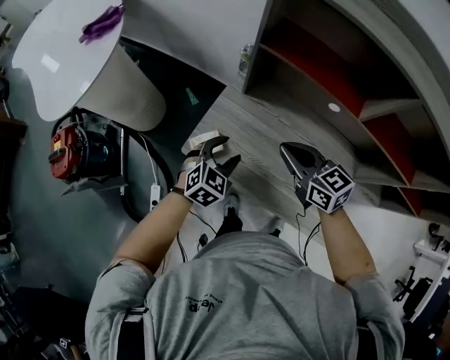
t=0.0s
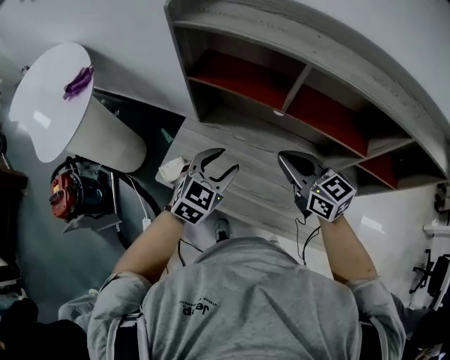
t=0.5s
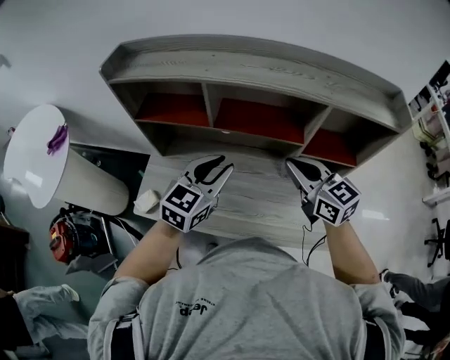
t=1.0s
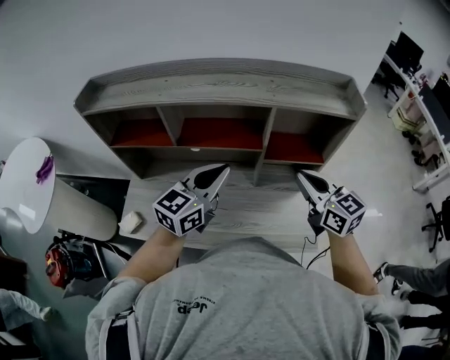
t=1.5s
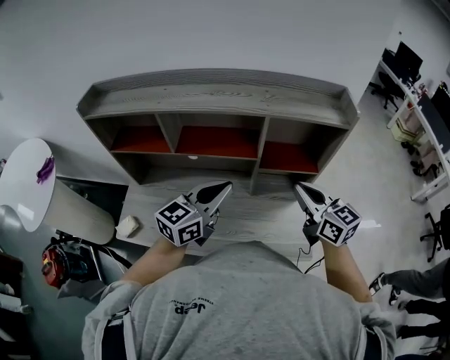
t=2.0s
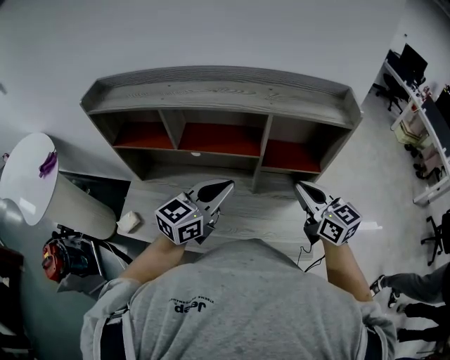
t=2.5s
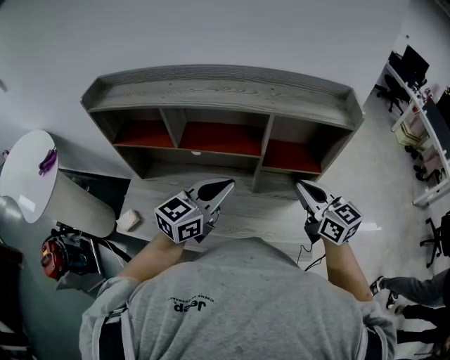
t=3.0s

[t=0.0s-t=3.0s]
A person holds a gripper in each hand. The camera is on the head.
t=0.0s to t=1.5s: The two grippers travel together, roughly 50 cm. The right gripper turns by roughly 40 degrees, while the left gripper tilts its fingers approximately 40 degrees upward, and closes up.
t=1.5s to t=3.0s: The grippers make only small movements.

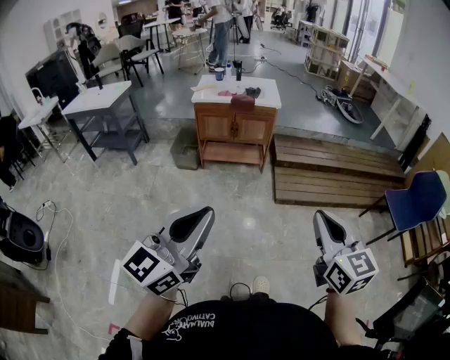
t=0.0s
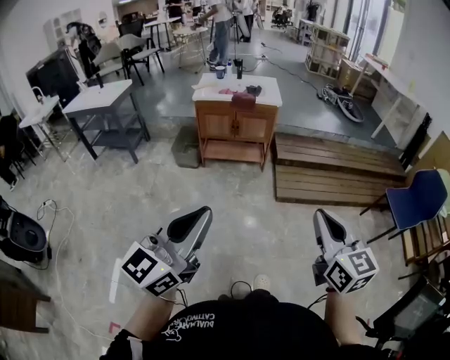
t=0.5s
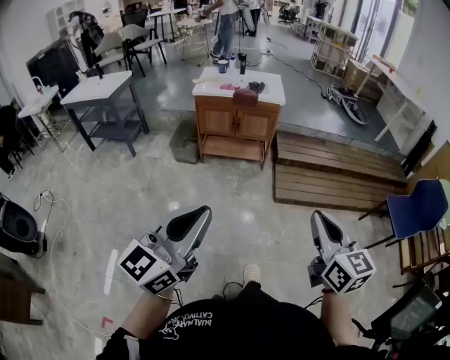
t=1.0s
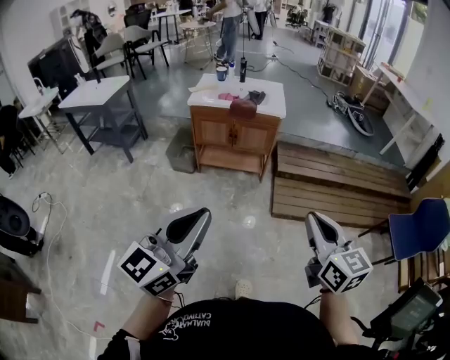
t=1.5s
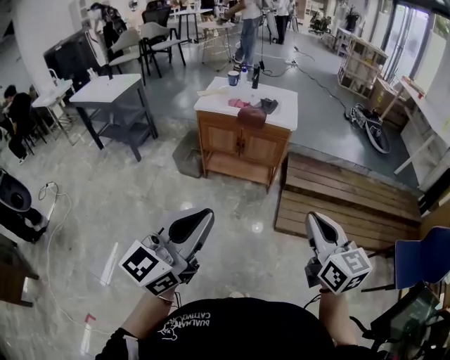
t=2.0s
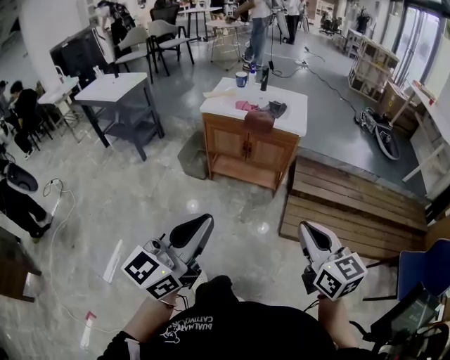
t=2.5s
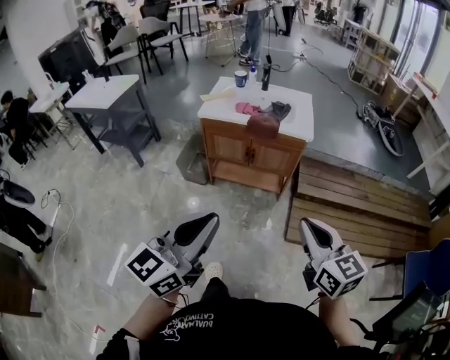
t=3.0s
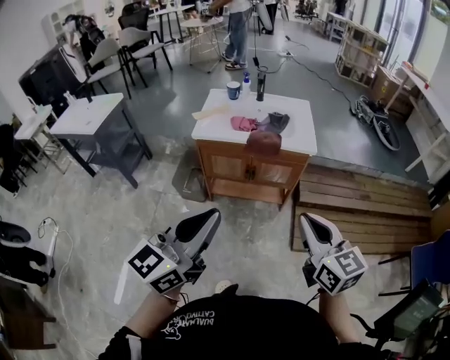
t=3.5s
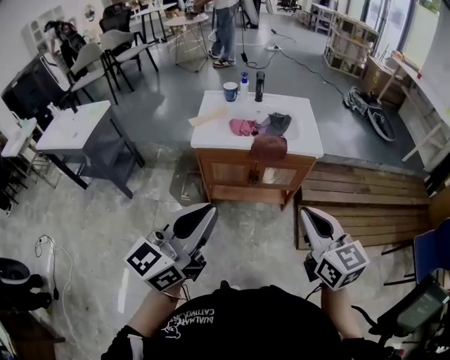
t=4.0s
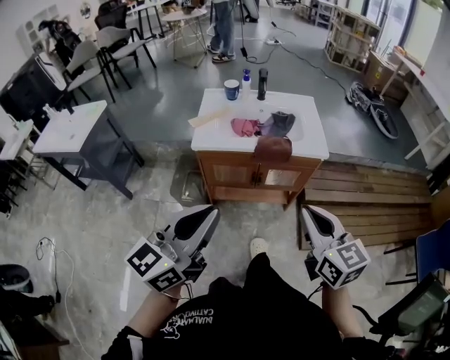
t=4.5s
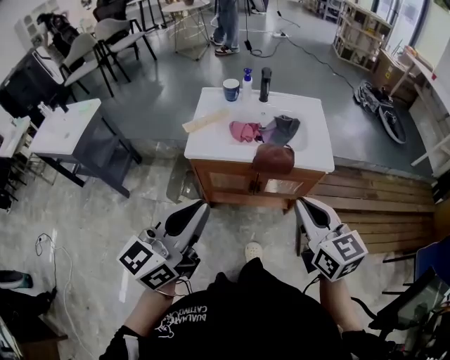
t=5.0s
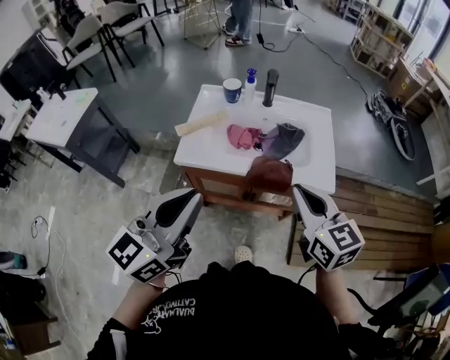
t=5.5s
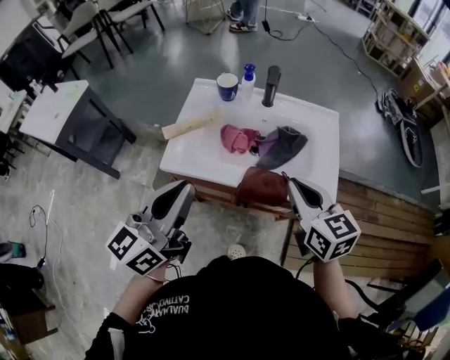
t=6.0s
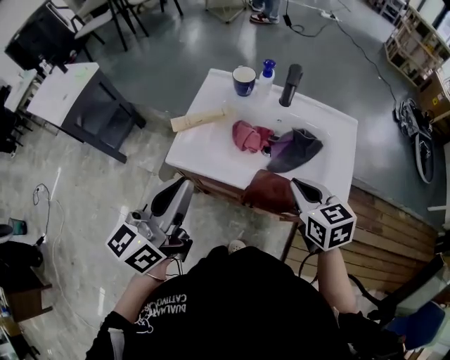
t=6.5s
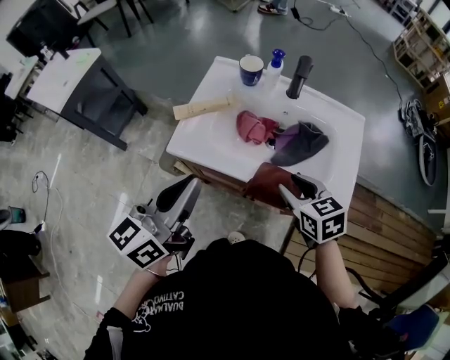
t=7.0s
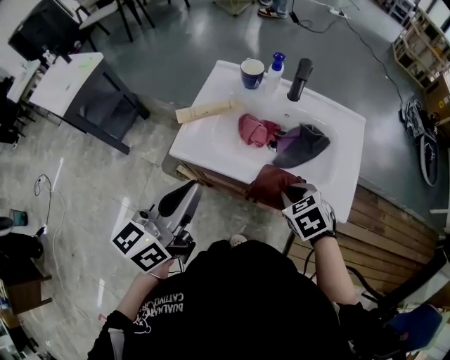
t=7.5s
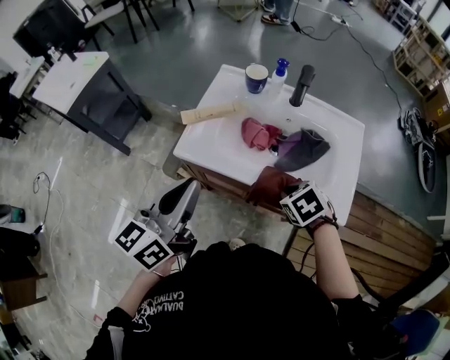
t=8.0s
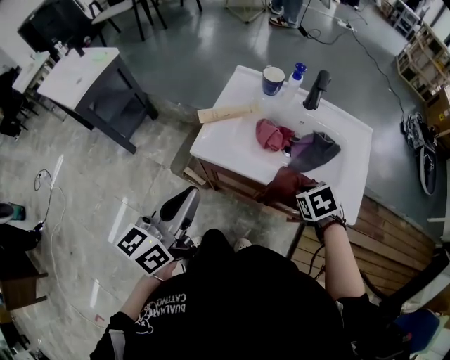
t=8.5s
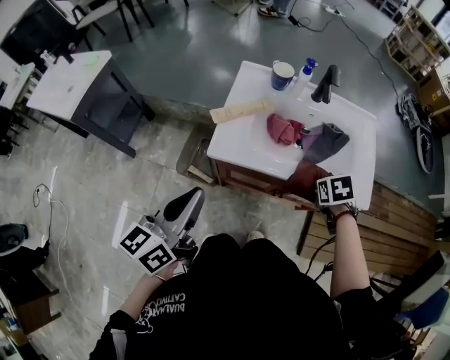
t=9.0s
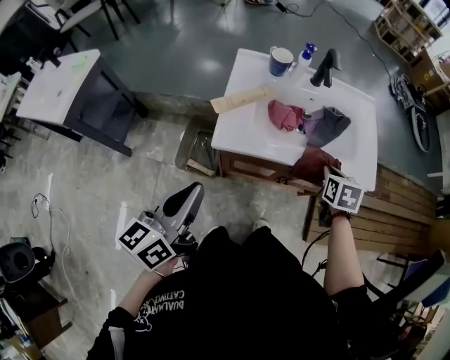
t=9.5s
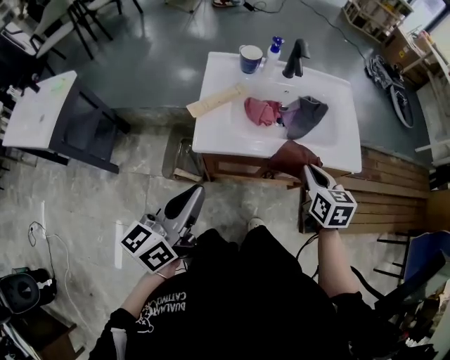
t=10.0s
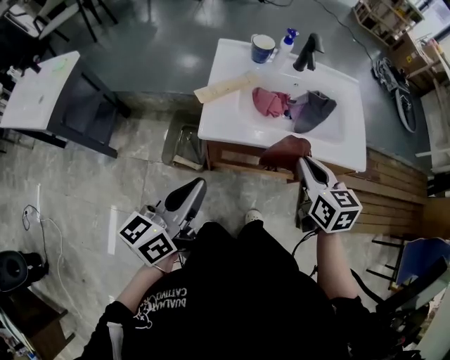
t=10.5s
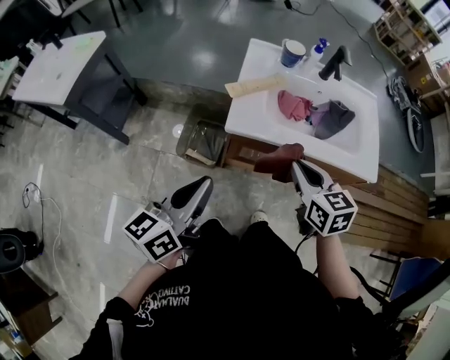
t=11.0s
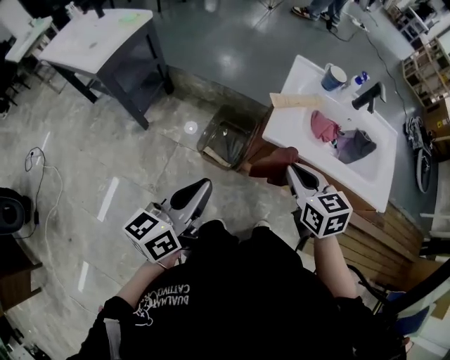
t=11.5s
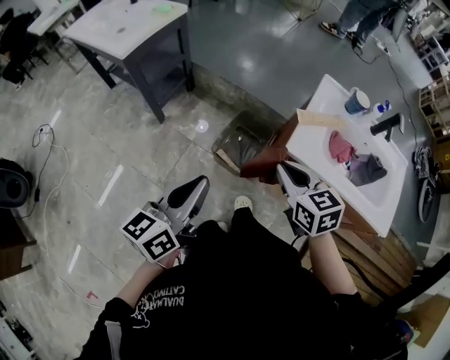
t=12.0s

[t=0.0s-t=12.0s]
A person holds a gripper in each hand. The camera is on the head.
t=0.0s to t=2.0s: Both grippers travel together forward, about 25 cm.
t=2.0s to t=4.0s: The grippers both shift forward and to the left by about 40 cm.
t=4.0s to t=6.0s: The grippers both shift forward by some 35 cm.
t=6.0s to t=8.0s: The left gripper heads downward, covering approximately 5 cm. Meanwhile the right gripper shifts approximately 15 cm downward, tips its fingers downward by approximately 50 degrees, and opens, then closes once more.
t=8.0s to t=10.0s: The right gripper changes place by roughly 10 cm, and points its fingers some 30 degrees further upward, while the left gripper changes place by approximately 15 cm, and rotates about 20 degrees.
t=10.0s to t=12.0s: The right gripper changes place by some 35 cm, and turns by approximately 40 degrees. Meanwhile the left gripper ends up some 25 cm from where it was, and turns by roughly 20 degrees.

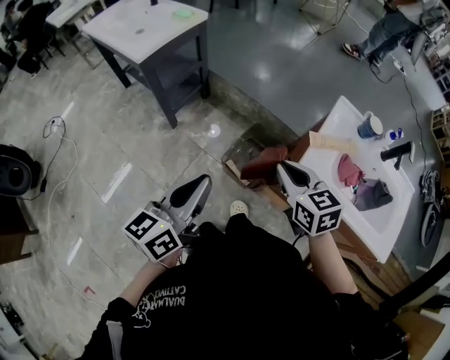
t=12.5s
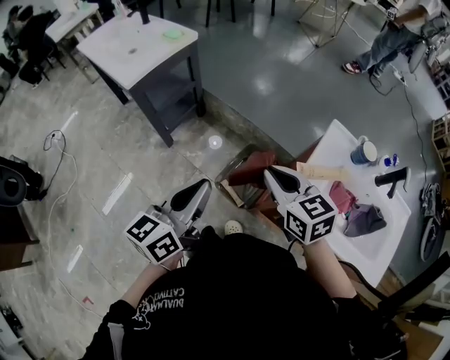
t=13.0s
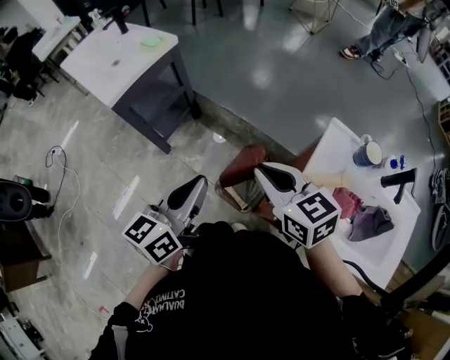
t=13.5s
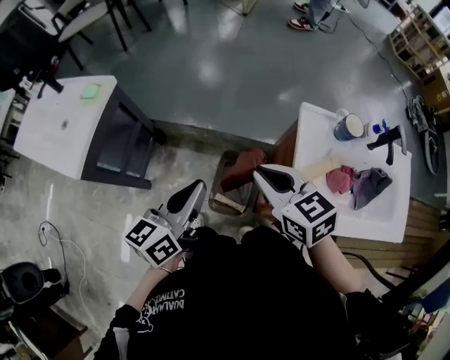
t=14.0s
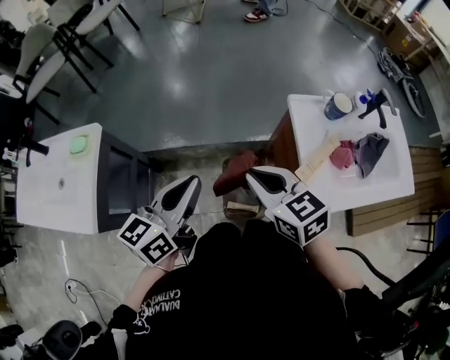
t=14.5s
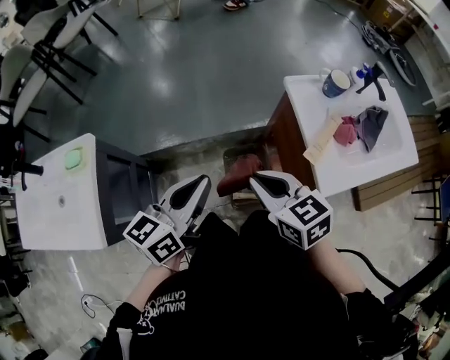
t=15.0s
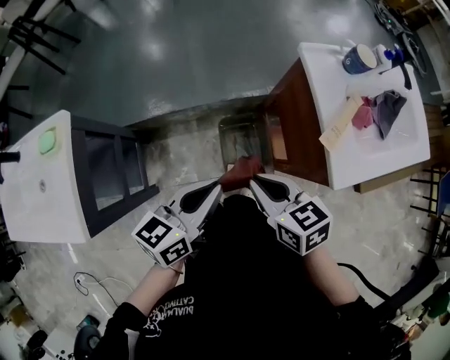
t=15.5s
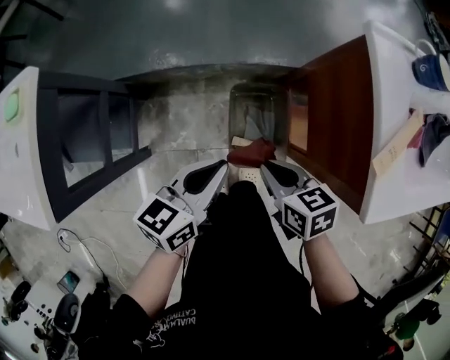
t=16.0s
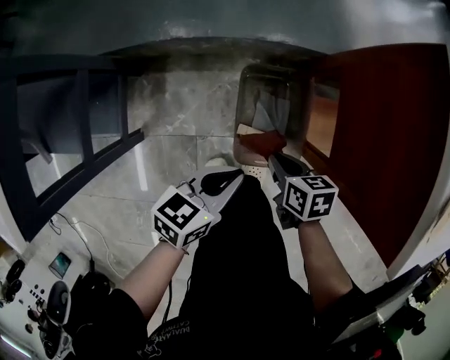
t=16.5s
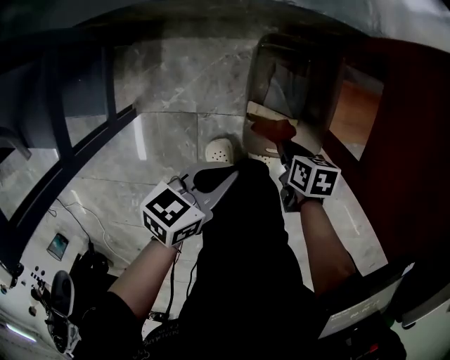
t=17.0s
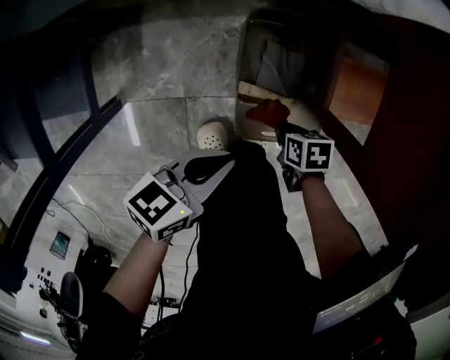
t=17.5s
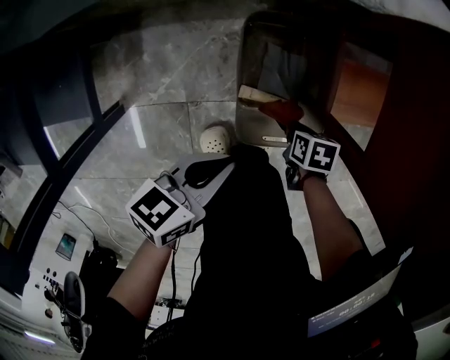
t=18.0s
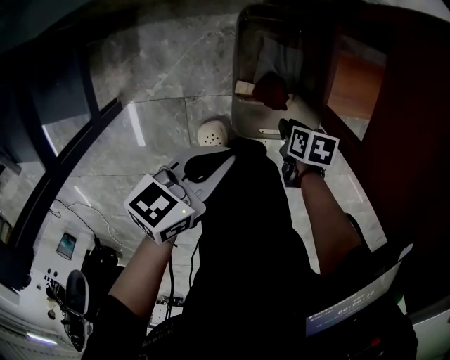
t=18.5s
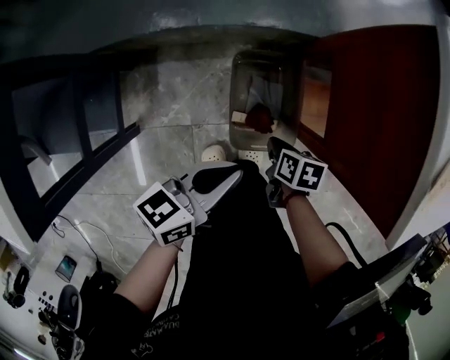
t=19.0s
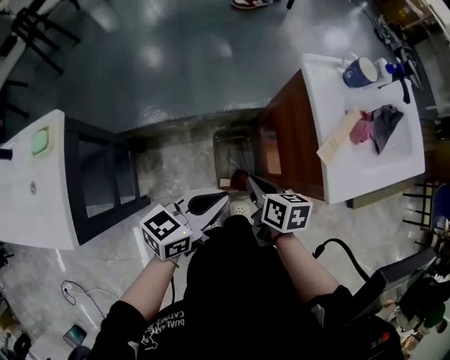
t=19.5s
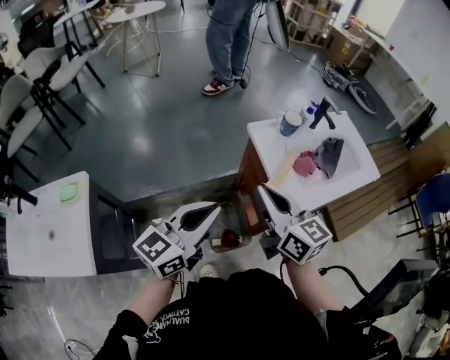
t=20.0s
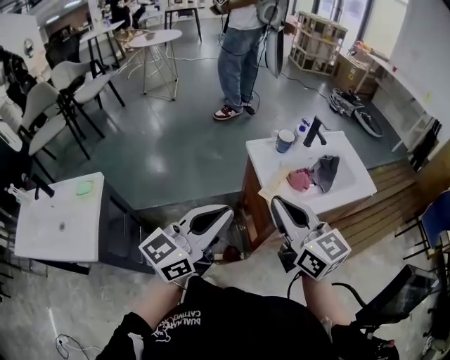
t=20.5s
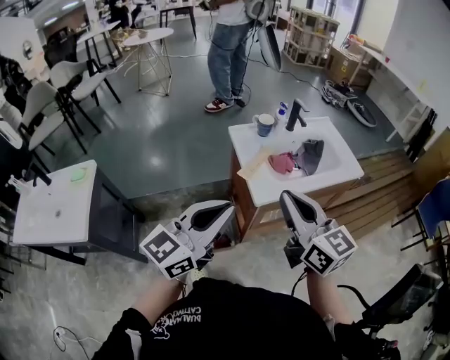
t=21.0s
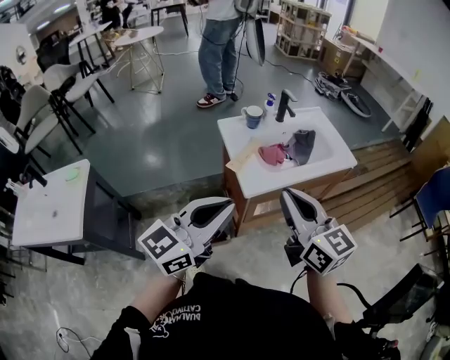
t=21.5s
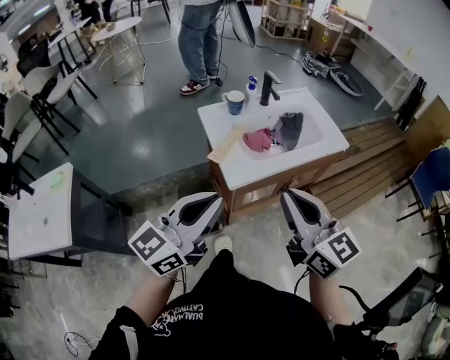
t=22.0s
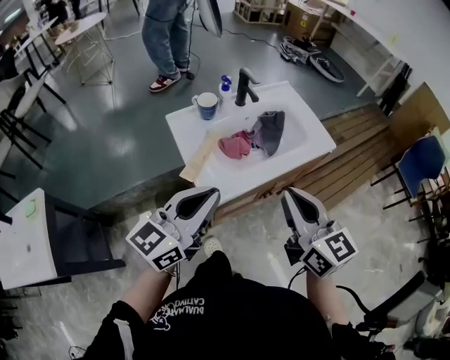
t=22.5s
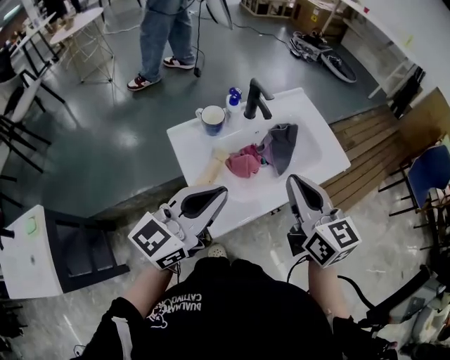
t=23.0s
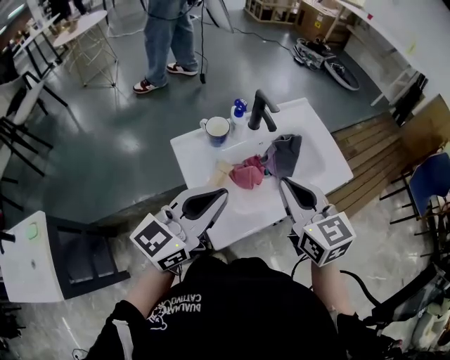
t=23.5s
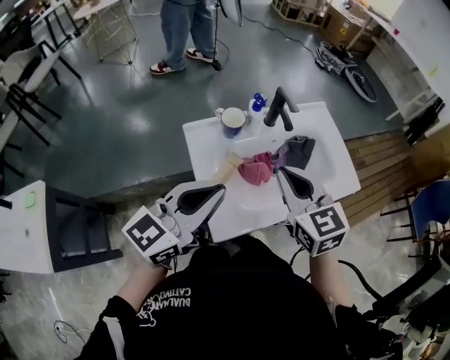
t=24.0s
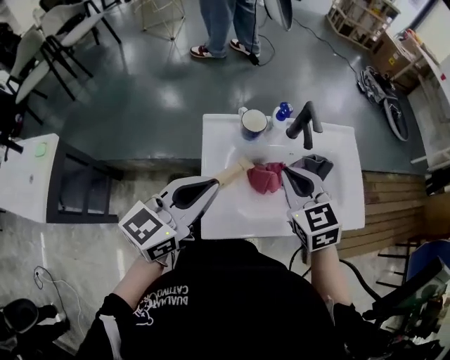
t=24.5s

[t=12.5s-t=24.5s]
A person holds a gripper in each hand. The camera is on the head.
t=12.5s to t=14.5s: The right gripper ends up about 25 cm from where it was, and swivels some 30 degrees. The left gripper shifts by approximately 35 cm, and turns by some 40 degrees.
t=14.5s to t=16.5s: Both grippers travel together downward, approximately 50 cm. The right gripper turns by some 50 degrees. Meanwhile the left gripper changes its angle by roughly 30 degrees.
t=16.5s to t=18.5s: The right gripper heads downward, covering roughly 20 cm, and swivels roughly 30 degrees. Meanwhile the left gripper goes approximately 10 cm downward.
t=18.5s to t=20.5s: The grippers both shift upward by approximately 80 cm. The right gripper tilts its fingers some 70 degrees upward, and closes up. The left gripper angles its fingers upward, by about 40 degrees.
t=20.5s to t=22.5s: The right gripper moves to the right, approximately 25 cm. Meanwhile the left gripper goes about 25 cm to the right and forward.
t=22.5s to t=24.5s: The right gripper shifts some 25 cm forward, and swivels some 40 degrees. Meanwhile the left gripper travels forward by approximately 15 cm, and rotates some 20 degrees.
